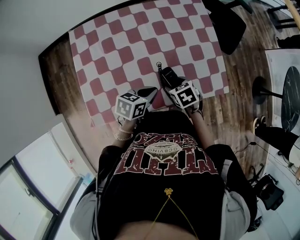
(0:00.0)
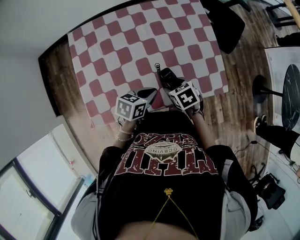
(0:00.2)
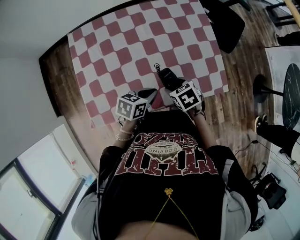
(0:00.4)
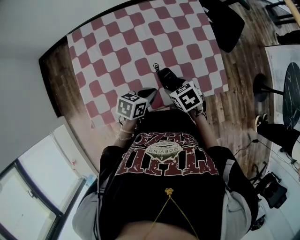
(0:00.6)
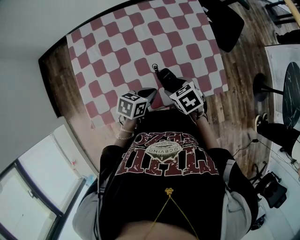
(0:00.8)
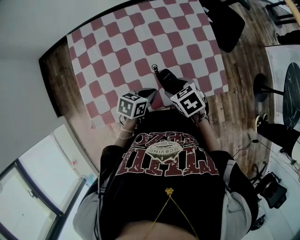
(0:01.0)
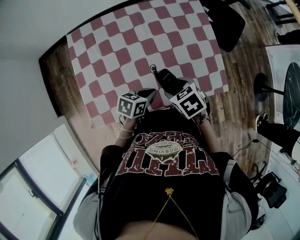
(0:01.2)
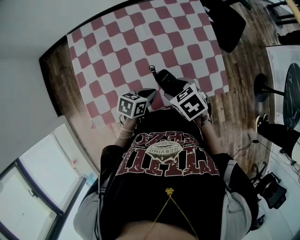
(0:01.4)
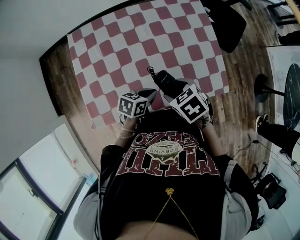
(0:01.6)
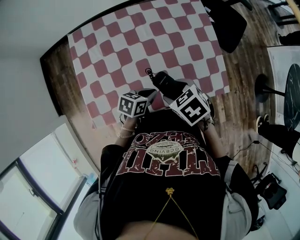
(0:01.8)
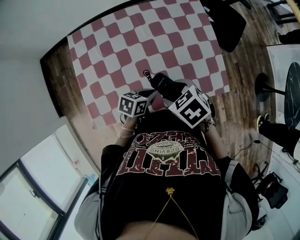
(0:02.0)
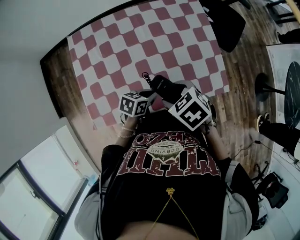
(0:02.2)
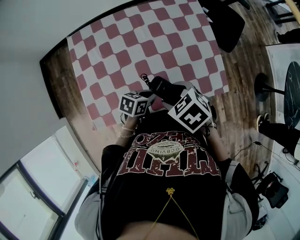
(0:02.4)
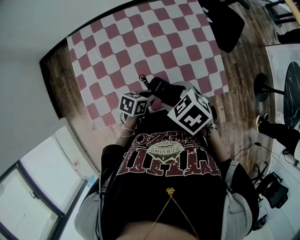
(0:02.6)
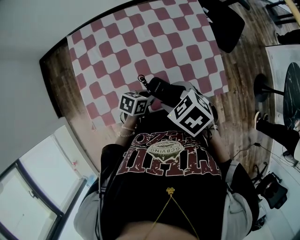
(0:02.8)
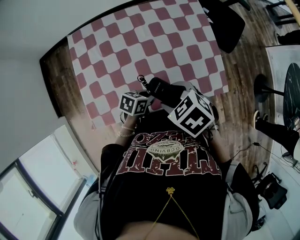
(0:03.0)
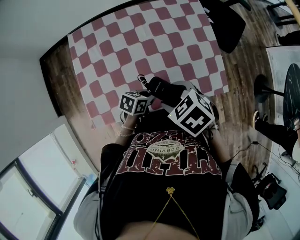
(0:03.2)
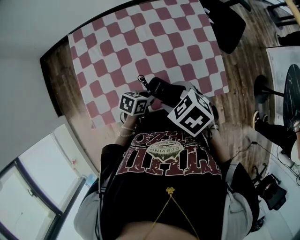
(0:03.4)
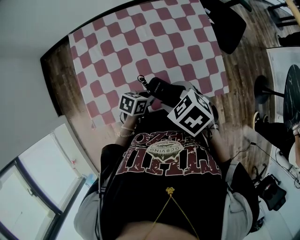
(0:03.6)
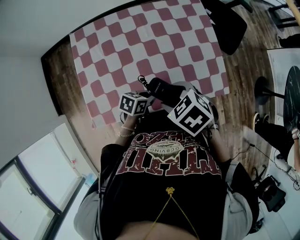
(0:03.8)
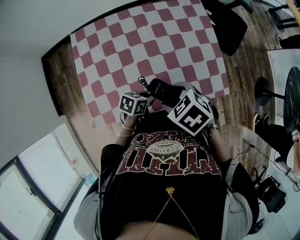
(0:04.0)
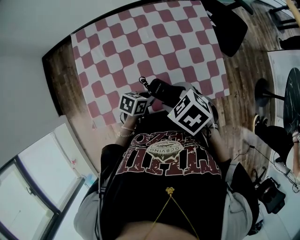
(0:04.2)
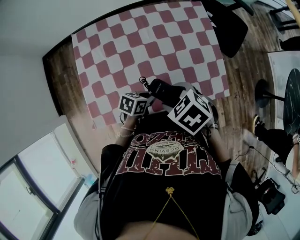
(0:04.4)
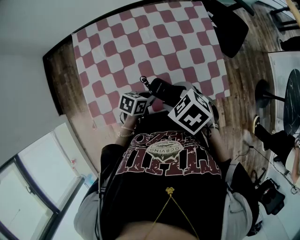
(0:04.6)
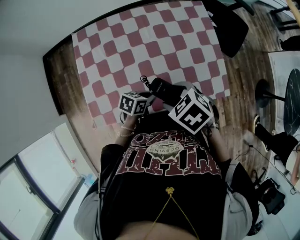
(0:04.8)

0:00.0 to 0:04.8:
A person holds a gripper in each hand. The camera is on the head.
0:00.0 to 0:01.6: The right gripper travels upward by some 10 cm.
0:01.6 to 0:03.2: The right gripper travels upward by about 5 cm.
0:03.2 to 0:04.8: Neither gripper changes place.

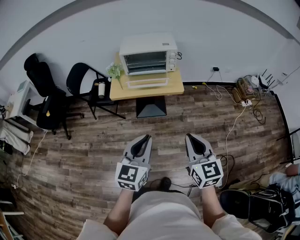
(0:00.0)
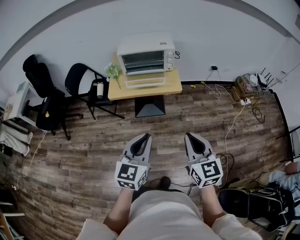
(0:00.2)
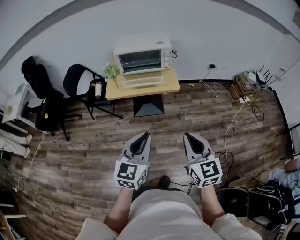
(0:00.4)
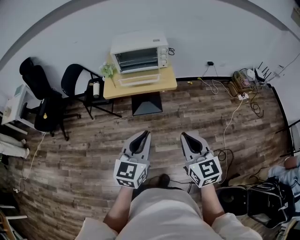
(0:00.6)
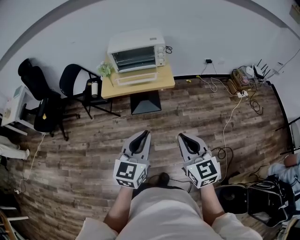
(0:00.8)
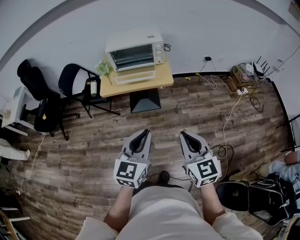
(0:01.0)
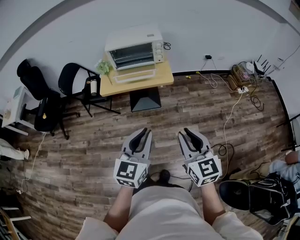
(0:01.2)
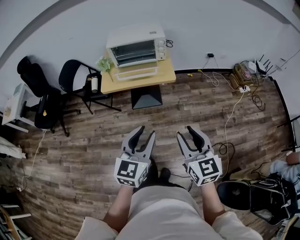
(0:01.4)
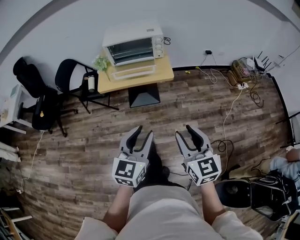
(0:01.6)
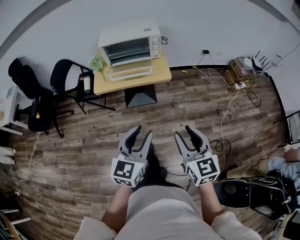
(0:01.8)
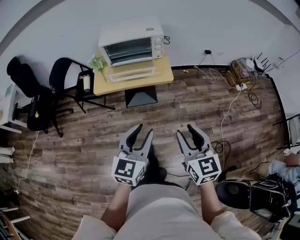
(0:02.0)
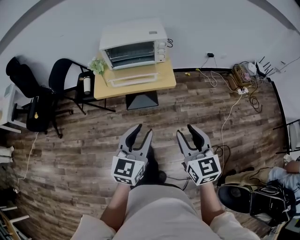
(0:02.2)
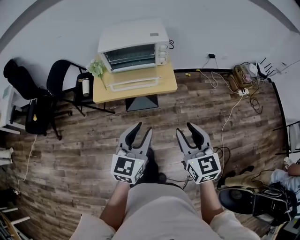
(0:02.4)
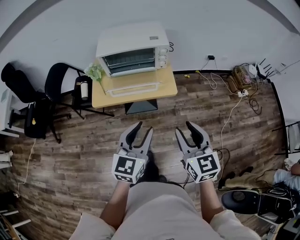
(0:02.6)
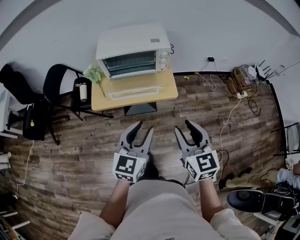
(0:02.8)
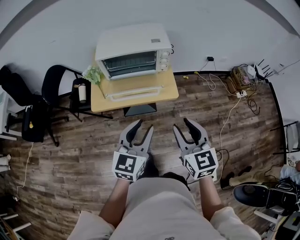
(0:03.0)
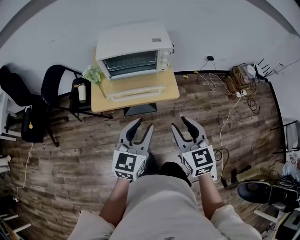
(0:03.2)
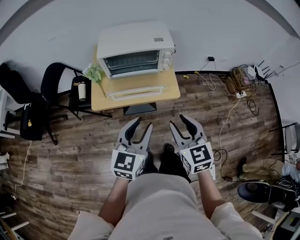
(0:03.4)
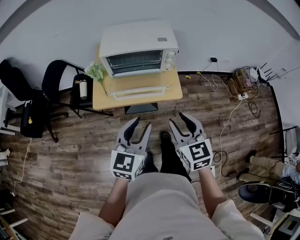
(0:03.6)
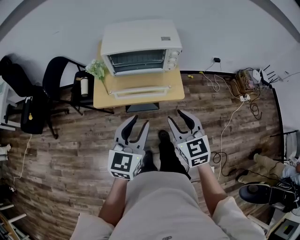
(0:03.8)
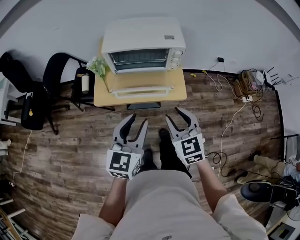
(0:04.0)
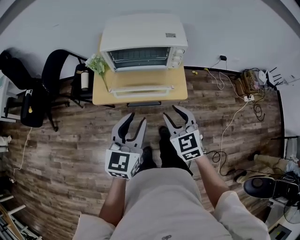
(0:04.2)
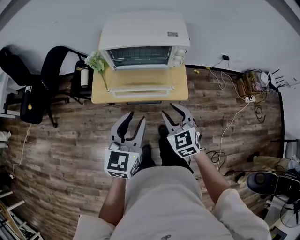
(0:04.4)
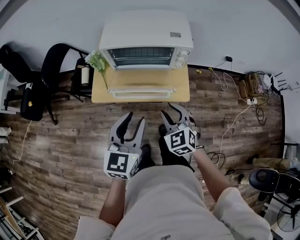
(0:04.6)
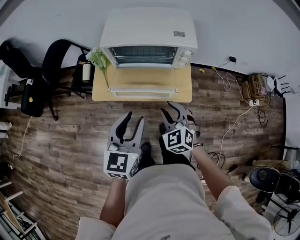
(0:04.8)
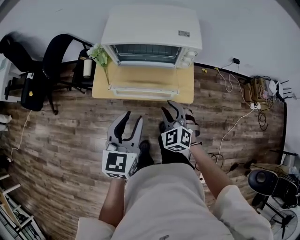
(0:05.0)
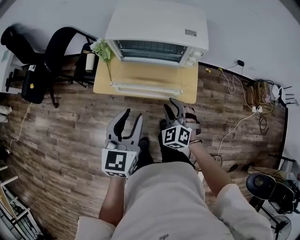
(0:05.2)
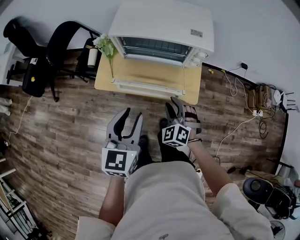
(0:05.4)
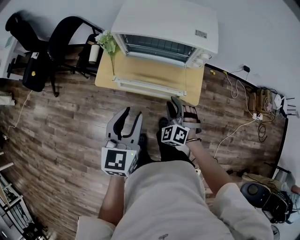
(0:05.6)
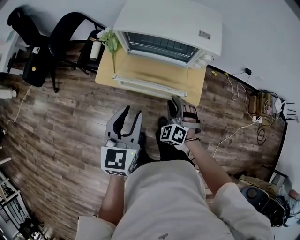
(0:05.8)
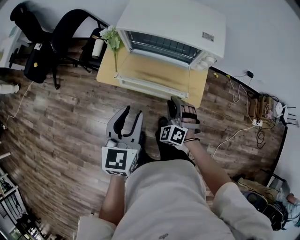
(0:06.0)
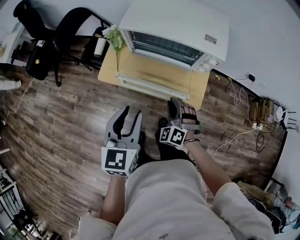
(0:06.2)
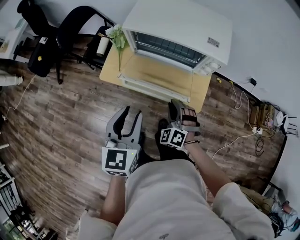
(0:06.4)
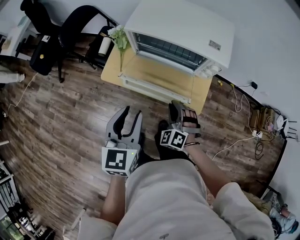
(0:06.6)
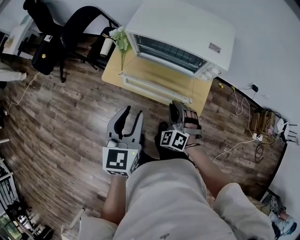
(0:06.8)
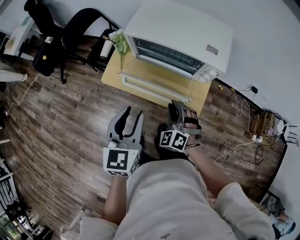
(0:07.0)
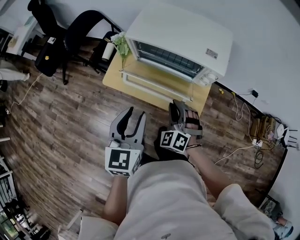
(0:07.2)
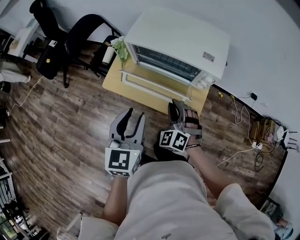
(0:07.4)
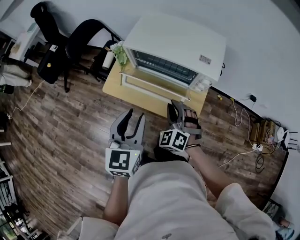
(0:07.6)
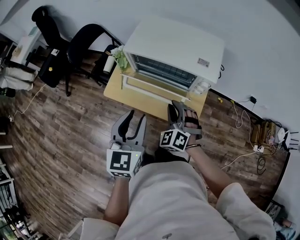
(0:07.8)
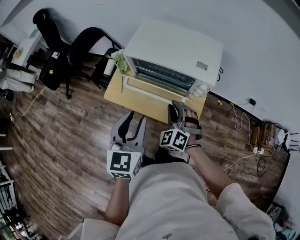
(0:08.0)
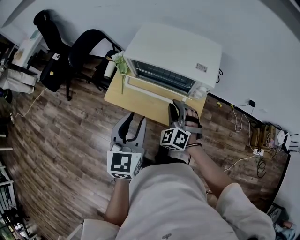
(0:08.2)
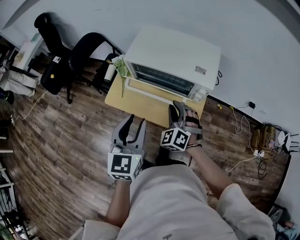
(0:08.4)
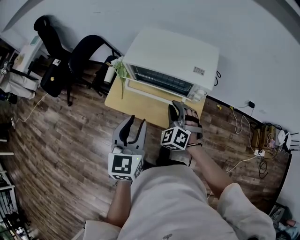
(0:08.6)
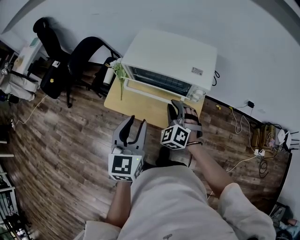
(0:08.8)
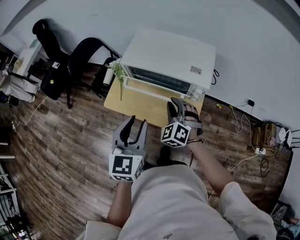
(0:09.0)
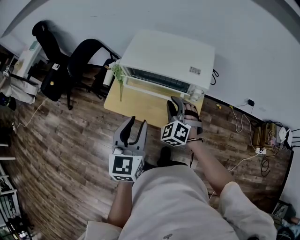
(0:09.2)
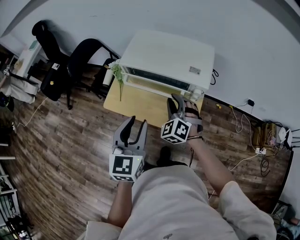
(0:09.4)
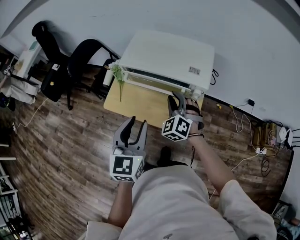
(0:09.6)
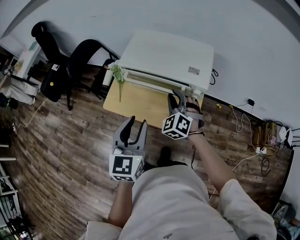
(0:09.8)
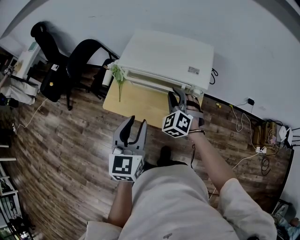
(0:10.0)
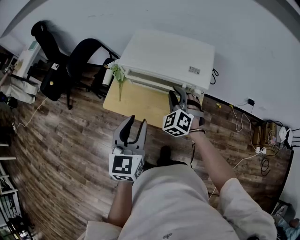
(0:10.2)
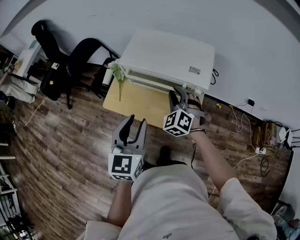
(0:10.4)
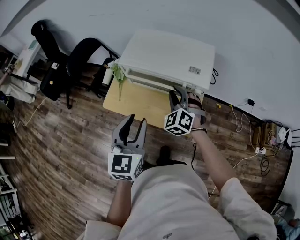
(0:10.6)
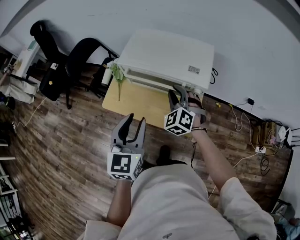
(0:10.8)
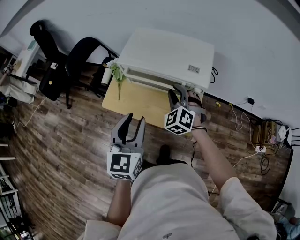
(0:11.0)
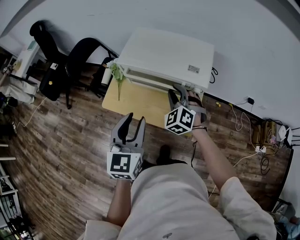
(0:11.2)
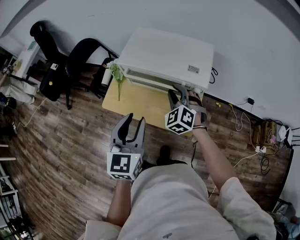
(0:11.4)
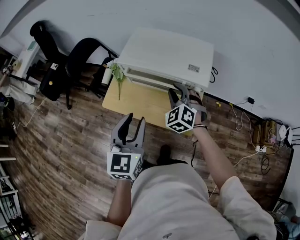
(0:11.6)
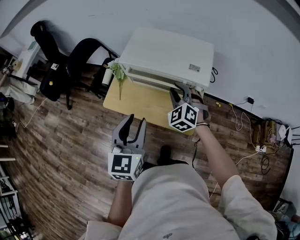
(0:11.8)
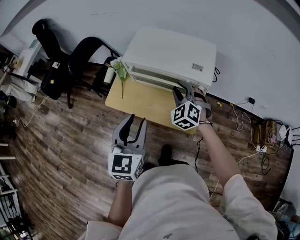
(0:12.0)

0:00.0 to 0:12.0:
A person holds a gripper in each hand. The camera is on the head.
0:00.0 to 0:01.6: The right gripper opens its fingers. The left gripper shifts some 5 cm to the right, and opens up.
0:01.6 to 0:03.0: The grippers both shift forward by some 25 cm.
0:03.0 to 0:04.4: The left gripper moves forward, roughly 10 cm; the right gripper goes approximately 20 cm forward, downward and to the left, and changes its angle by roughly 30 degrees.
0:04.4 to 0:06.0: The left gripper moves roughly 5 cm, and changes its angle by approximately 20 degrees, while the right gripper heads downward and forward, covering about 15 cm, and rotates around the line of its fingers by some 40 degrees, counterclockwise from behind.
0:06.0 to 0:07.6: The right gripper heads upward and forward, covering roughly 10 cm; the left gripper ends up some 5 cm from where it was.
0:07.6 to 0:09.0: The right gripper shifts by about 5 cm.
0:09.0 to 0:10.4: The right gripper ends up some 5 cm from where it was.
0:10.4 to 0:12.0: The grippers stay close to where they were, moving slightly.

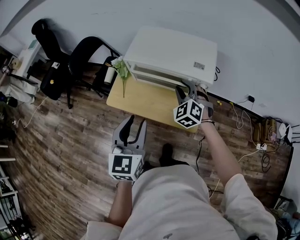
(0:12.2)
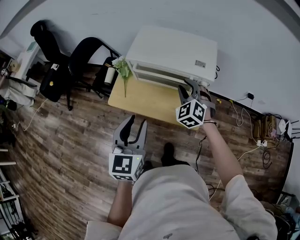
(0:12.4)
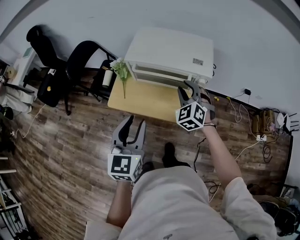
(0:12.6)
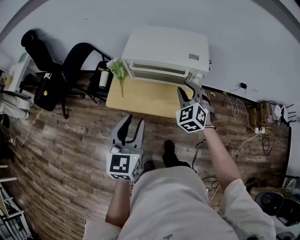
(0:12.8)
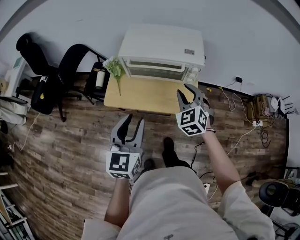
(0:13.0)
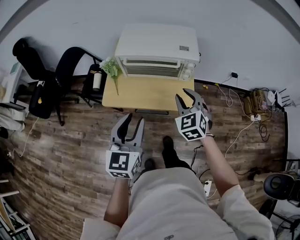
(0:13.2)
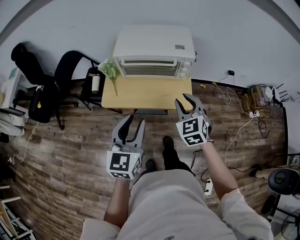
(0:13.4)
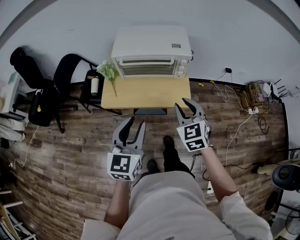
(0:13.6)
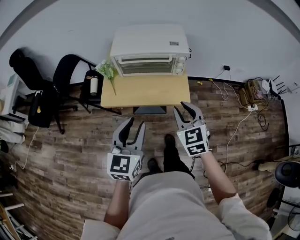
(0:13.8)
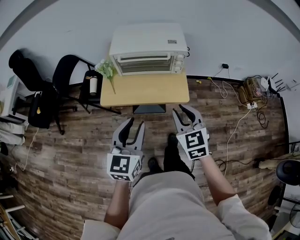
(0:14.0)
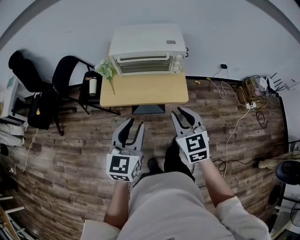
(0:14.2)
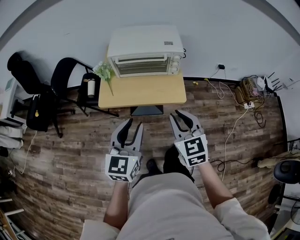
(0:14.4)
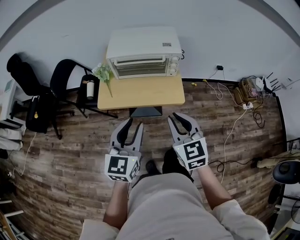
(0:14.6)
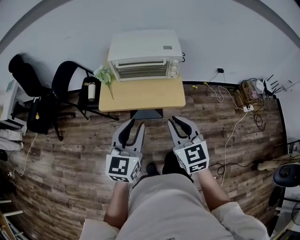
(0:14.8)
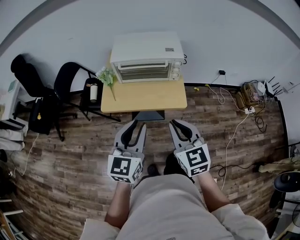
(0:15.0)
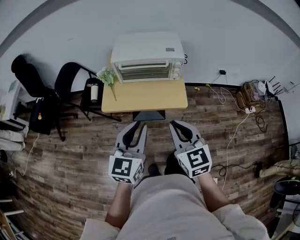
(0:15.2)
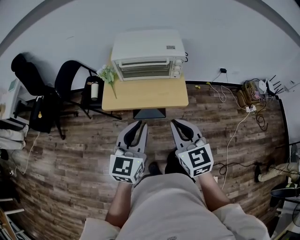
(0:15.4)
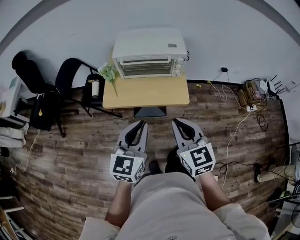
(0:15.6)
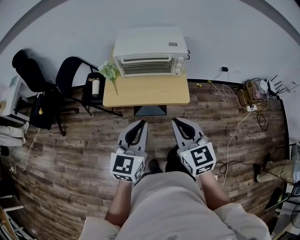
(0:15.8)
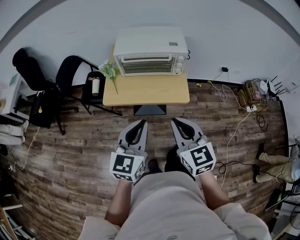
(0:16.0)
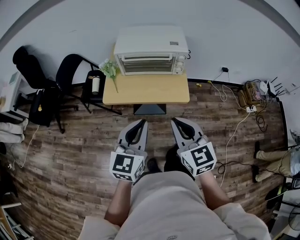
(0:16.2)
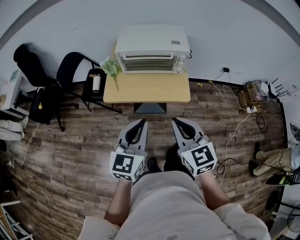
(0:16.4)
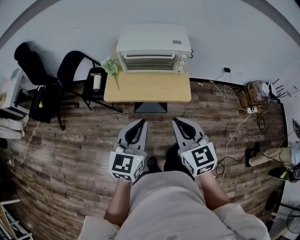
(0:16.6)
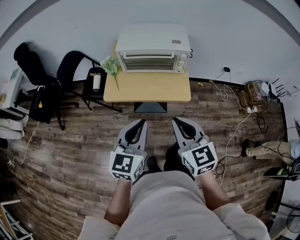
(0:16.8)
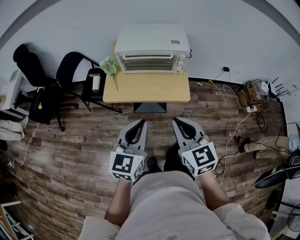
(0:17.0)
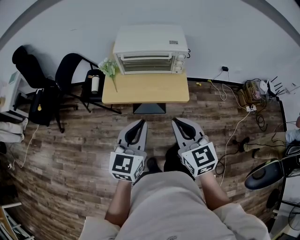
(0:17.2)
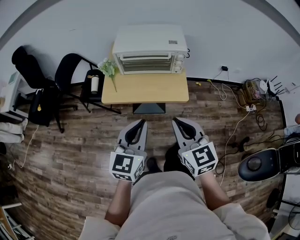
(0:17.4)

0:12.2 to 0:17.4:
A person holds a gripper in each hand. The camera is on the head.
0:12.2 to 0:14.0: The left gripper travels backward by about 15 cm, and changes its angle by approximately 20 degrees. Meanwhile the right gripper moves backward, about 30 cm, and rotates some 40 degrees.
0:14.0 to 0:15.6: The right gripper travels backward and upward by some 10 cm, and closes its fingers, while the left gripper closes its fingers.
0:15.6 to 0:17.4: The grippers move only a little.

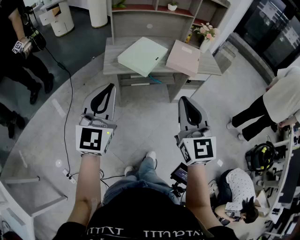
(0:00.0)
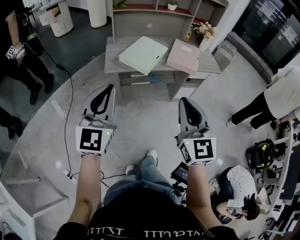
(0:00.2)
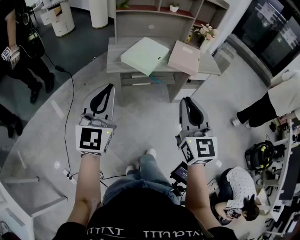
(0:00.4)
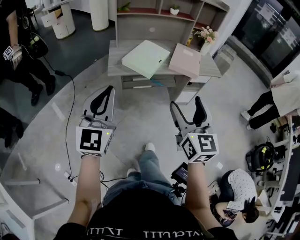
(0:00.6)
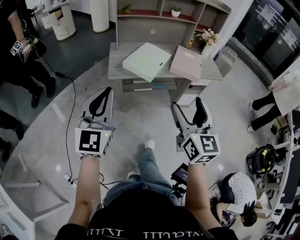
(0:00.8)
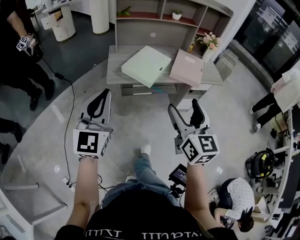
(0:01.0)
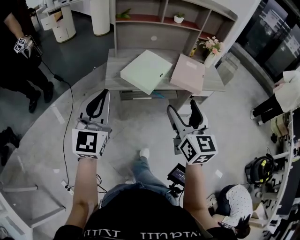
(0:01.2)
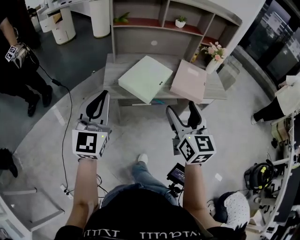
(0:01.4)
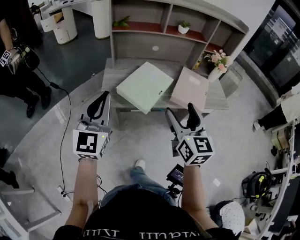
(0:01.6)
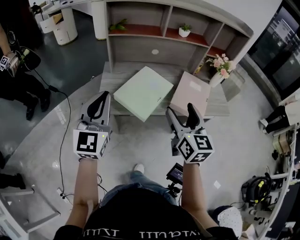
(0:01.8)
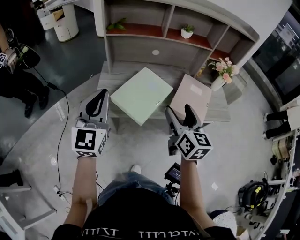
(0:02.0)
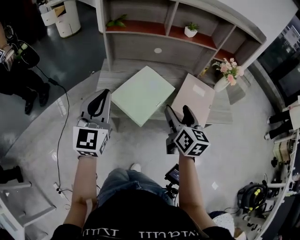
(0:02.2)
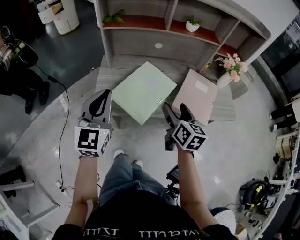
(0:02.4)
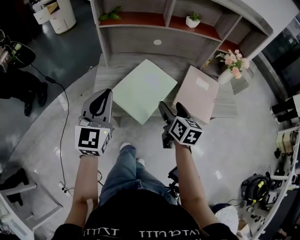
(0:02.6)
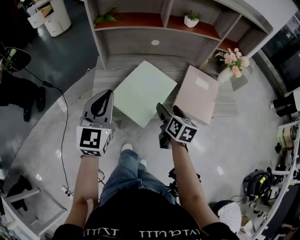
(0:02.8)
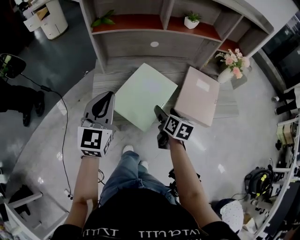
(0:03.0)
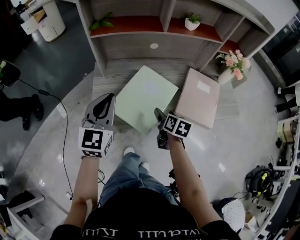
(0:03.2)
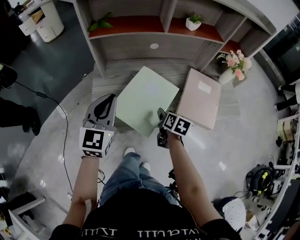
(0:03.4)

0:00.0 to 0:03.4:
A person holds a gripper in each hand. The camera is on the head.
0:00.0 to 0:01.6: The grippers both shift forward by some 25 cm. The right gripper opens up.
0:01.6 to 0:03.4: The right gripper moves downward and forward, about 40 cm, and angles its fingers downward, by about 40 degrees, while the left gripper shifts some 25 cm forward and downward.
